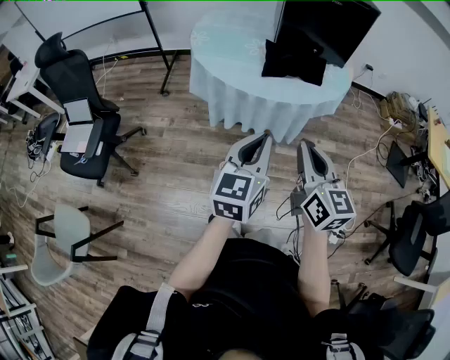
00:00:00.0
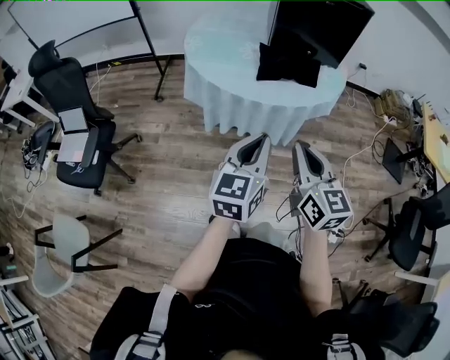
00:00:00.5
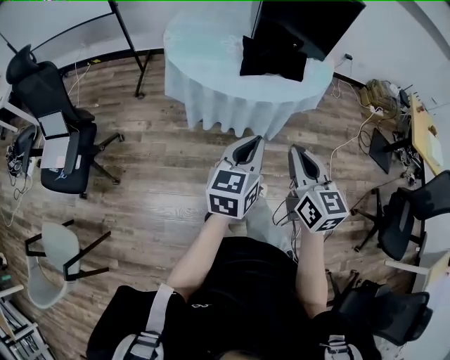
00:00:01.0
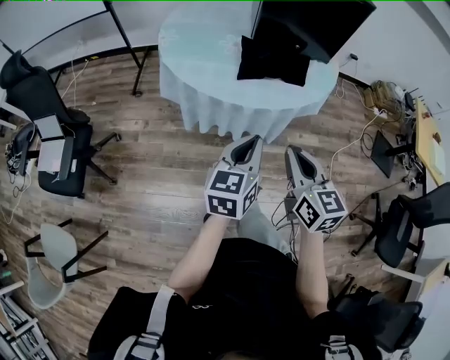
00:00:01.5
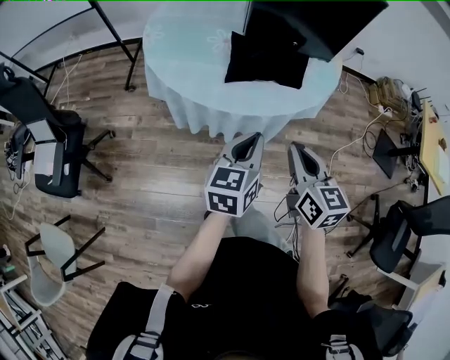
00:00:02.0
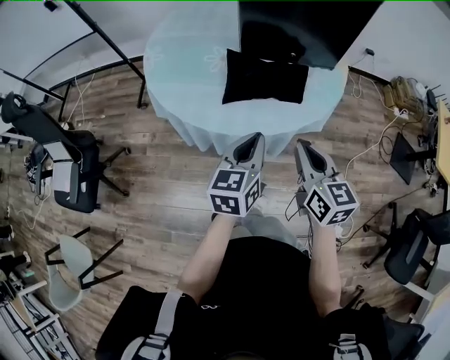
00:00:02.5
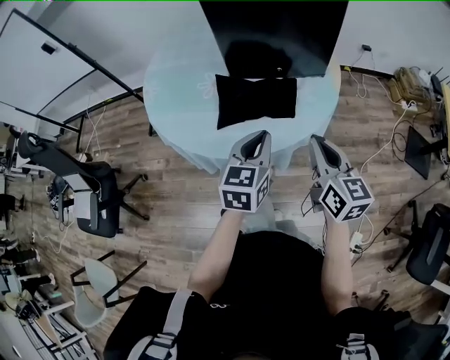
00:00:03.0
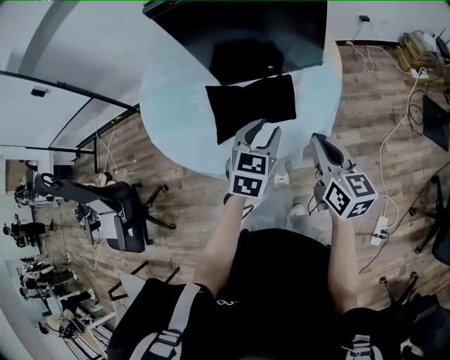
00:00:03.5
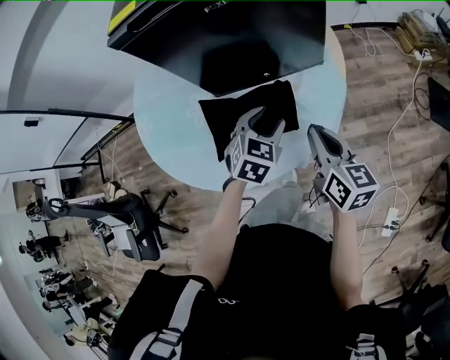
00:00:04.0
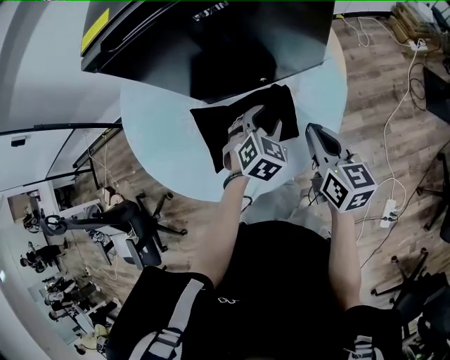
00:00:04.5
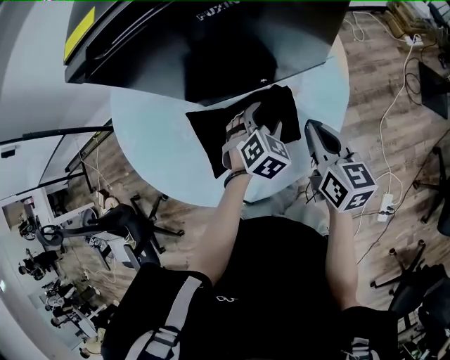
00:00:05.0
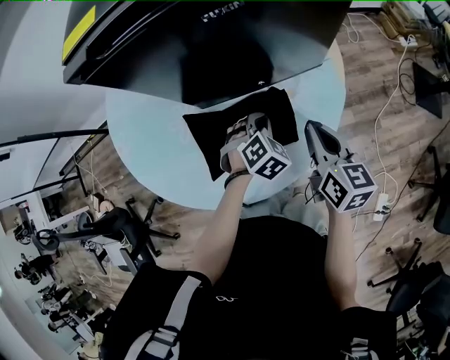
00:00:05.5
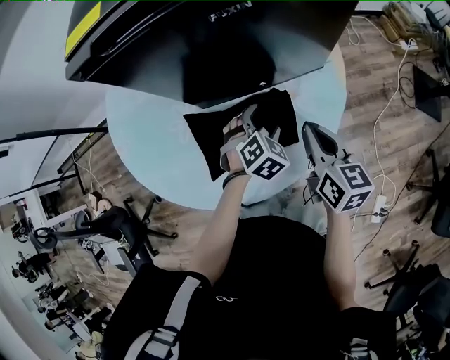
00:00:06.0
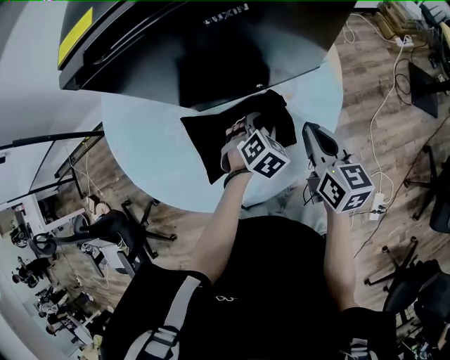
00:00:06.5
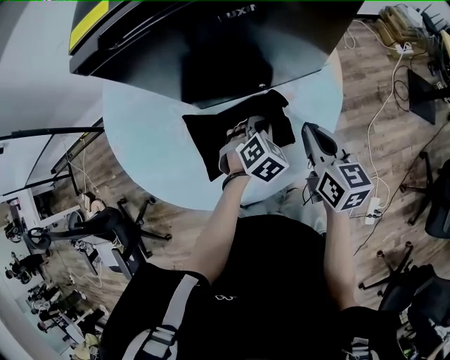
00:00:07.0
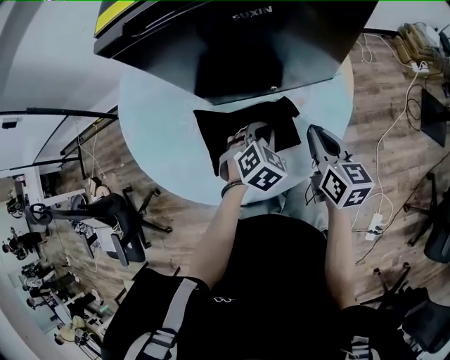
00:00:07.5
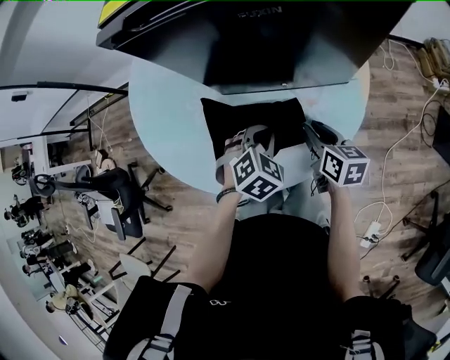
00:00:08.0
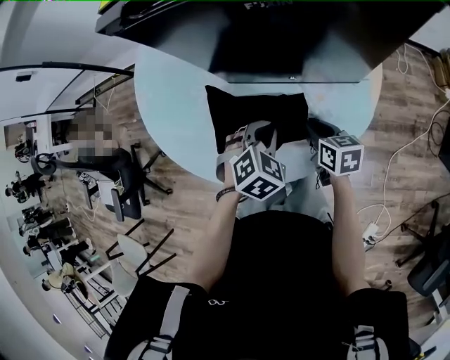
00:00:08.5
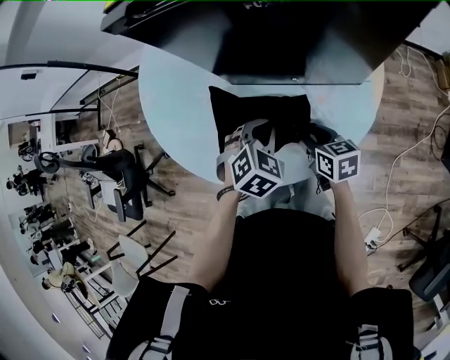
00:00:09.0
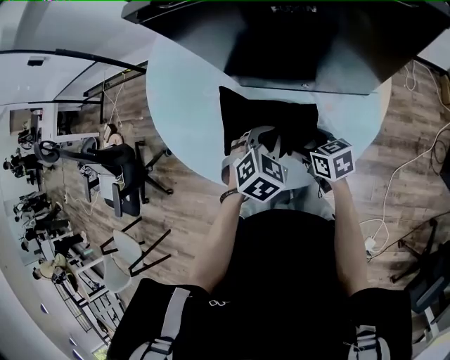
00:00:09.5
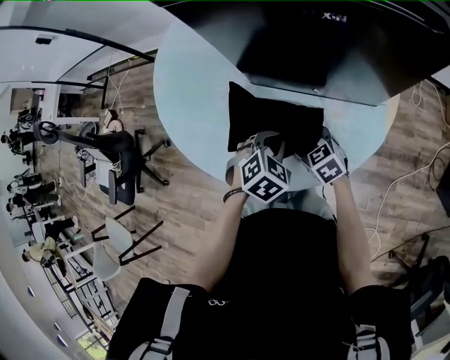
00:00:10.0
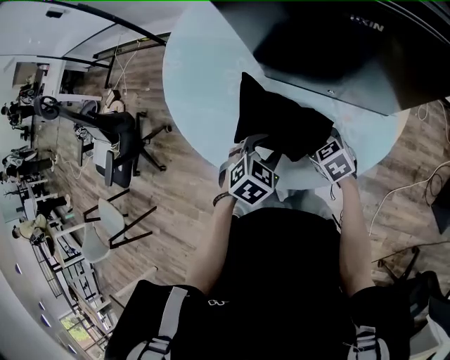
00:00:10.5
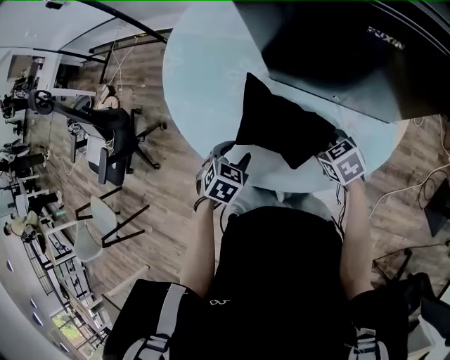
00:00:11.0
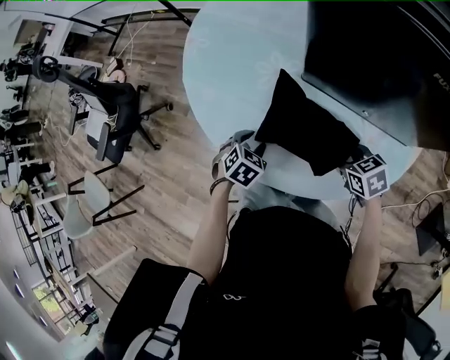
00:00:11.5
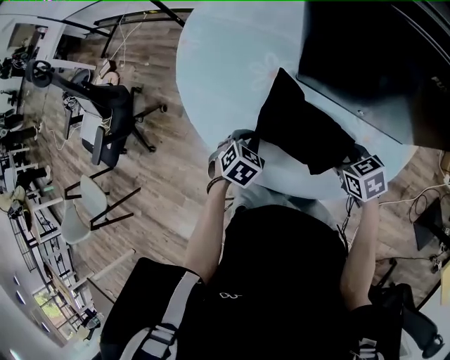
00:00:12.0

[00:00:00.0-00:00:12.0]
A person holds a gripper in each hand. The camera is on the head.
00:00:00.0 to 00:00:02.0: Both grippers travel together forward, to the right and downward, about 20 cm.
00:00:02.0 to 00:00:04.0: The left gripper travels forward by roughly 30 cm, rolls clockwise, seen from behind, by about 40 degrees, and opens up; the right gripper travels forward and to the right by approximately 30 cm, and changes its angle by approximately 20 degrees.
00:00:04.0 to 00:00:06.0: The right gripper moves forward, about 5 cm. The left gripper shifts roughly 10 cm downward and forward, rotates some 20 degrees, and closes and opens again.
00:00:06.0 to 00:00:08.0: The right gripper travels downward by about 10 cm, changes its angle by approximately 20 degrees, and opens, while the left gripper changes place by about 5 cm, and closes its fingers.
00:00:08.0 to 00:00:10.0: The right gripper travels to the left and downward by approximately 10 cm, twists about 50 degrees counterclockwise, seen from behind, and opens its fingers.
00:00:10.0 to 00:00:12.0: The left gripper moves to the left and downward, about 20 cm, swivels approximately 20 degrees, and opens, then closes again.

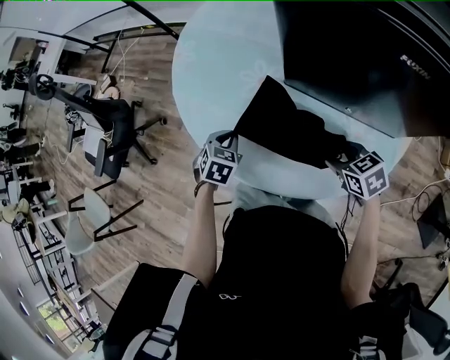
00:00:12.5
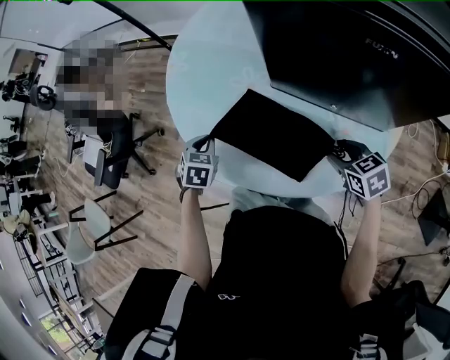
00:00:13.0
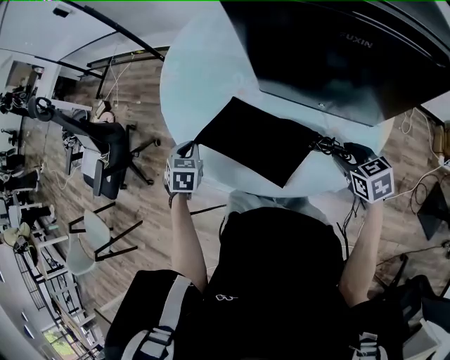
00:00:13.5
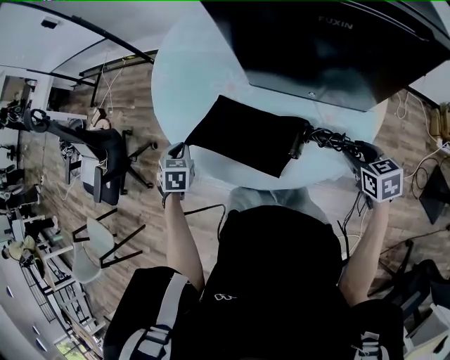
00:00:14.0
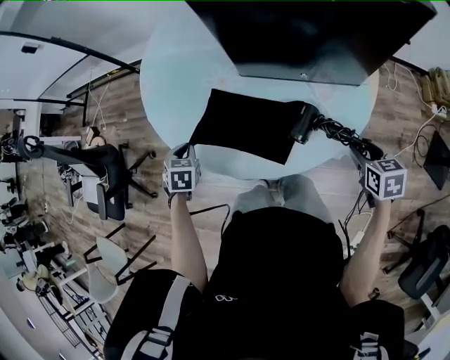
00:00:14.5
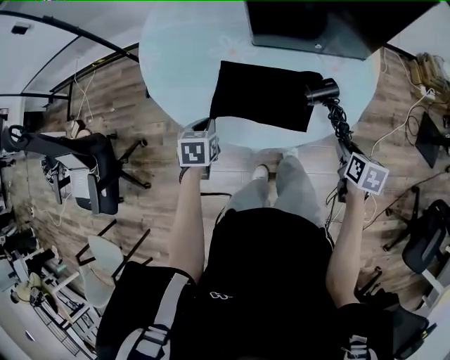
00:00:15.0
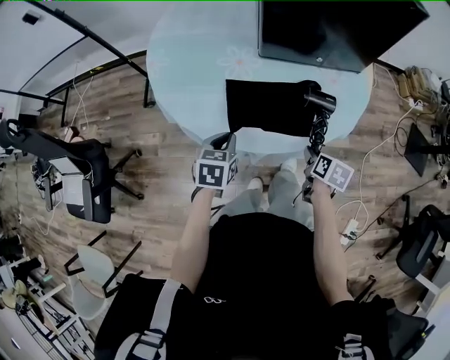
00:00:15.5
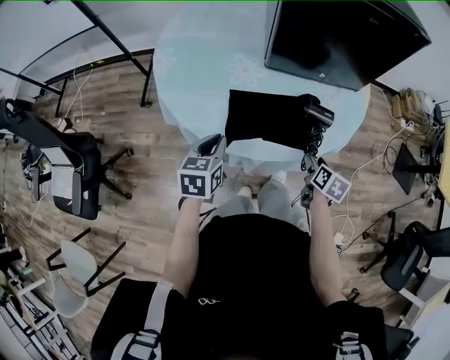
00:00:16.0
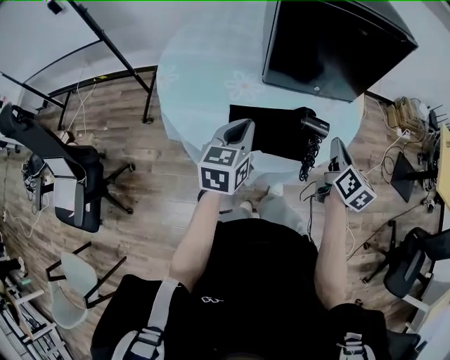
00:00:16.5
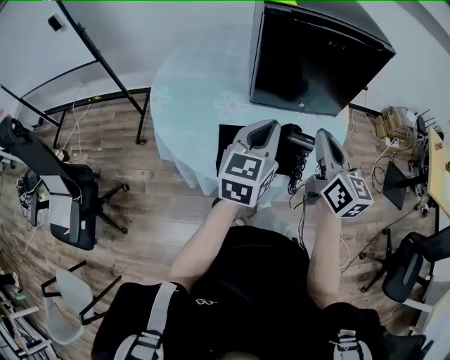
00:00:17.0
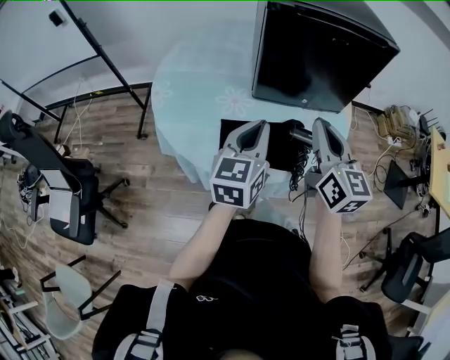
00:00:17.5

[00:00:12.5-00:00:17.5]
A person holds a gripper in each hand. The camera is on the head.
00:00:12.5 to 00:00:15.0: The left gripper shifts by about 5 cm. Meanwhile the right gripper moves roughly 20 cm, and changes its angle by roughly 70 degrees.
00:00:15.0 to 00:00:17.5: The left gripper travels upward and to the right by roughly 30 cm, and angles its fingers upward, by about 50 degrees; the right gripper is displaced upward and to the left by about 35 cm, tilts its fingers some 50 degrees upward, and closes up.

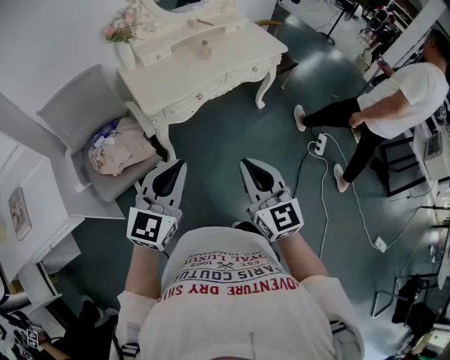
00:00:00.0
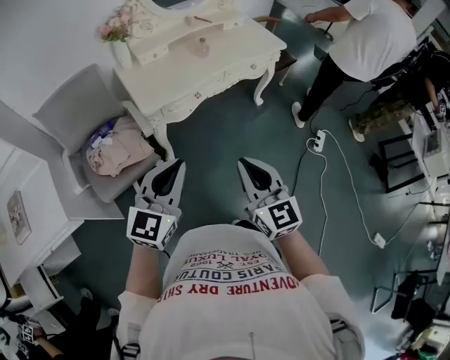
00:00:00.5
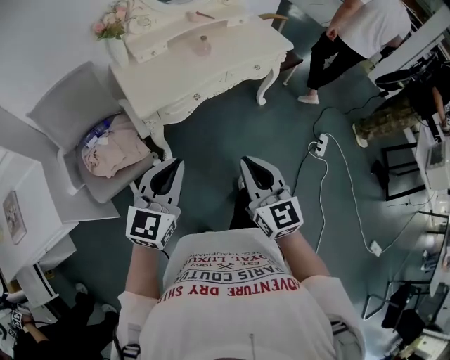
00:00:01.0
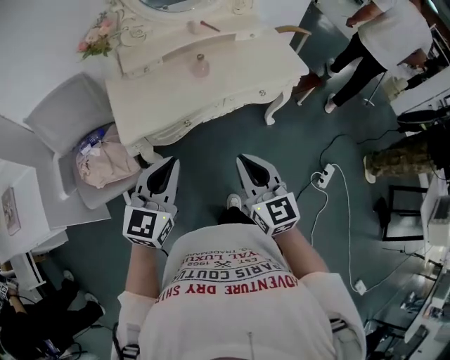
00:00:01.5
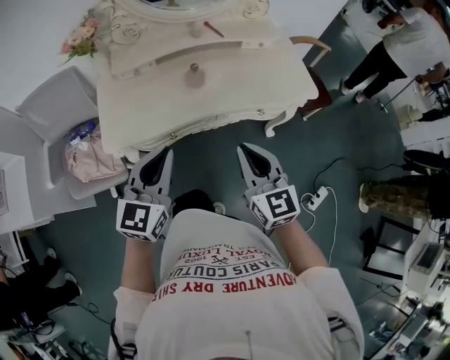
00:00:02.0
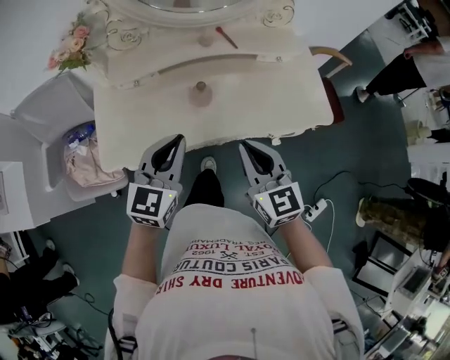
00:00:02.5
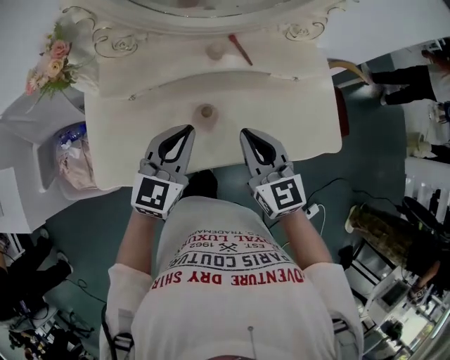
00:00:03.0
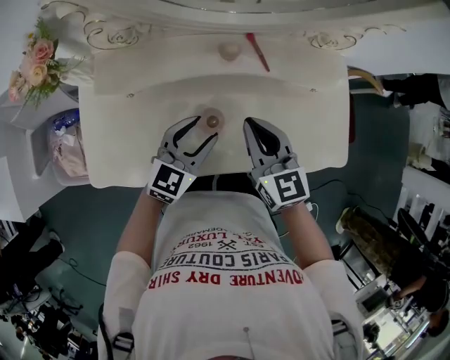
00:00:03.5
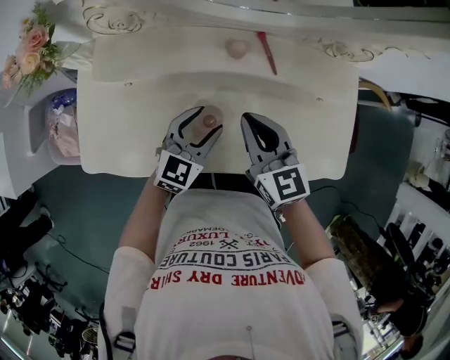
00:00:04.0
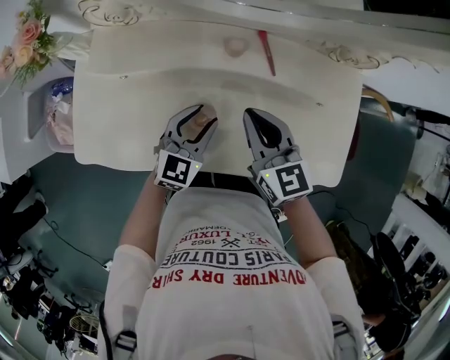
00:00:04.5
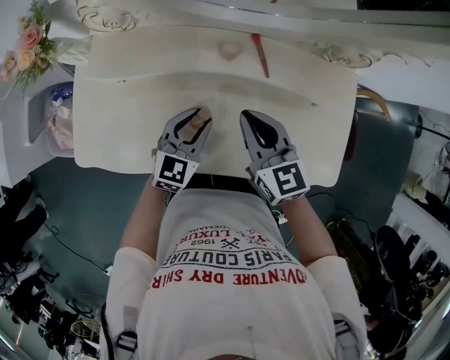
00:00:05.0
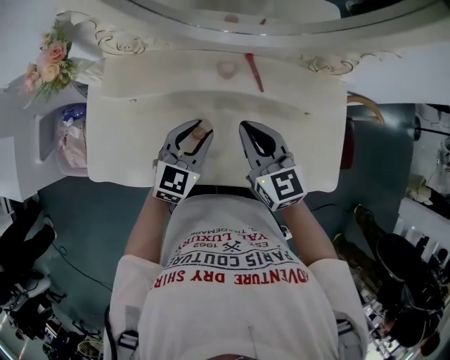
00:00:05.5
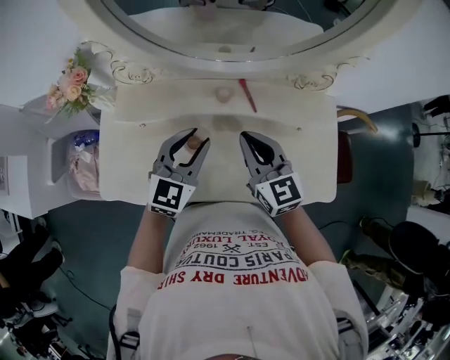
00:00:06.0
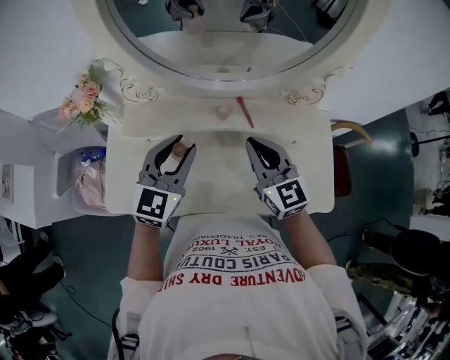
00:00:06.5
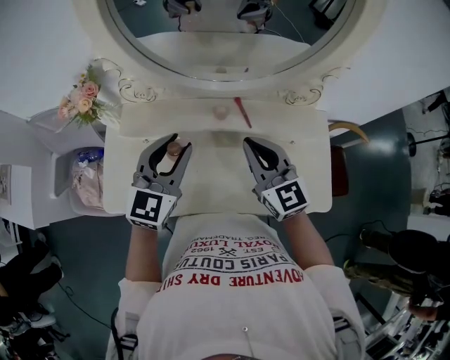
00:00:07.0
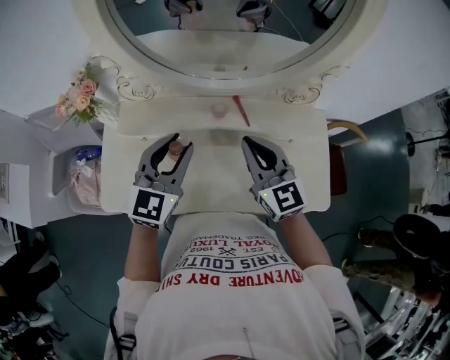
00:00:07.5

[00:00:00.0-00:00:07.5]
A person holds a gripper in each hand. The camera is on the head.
00:00:00.0 to 00:00:02.0: Both grippers are carried forward and to the right, some 50 cm. The left gripper changes its angle by roughly 30 degrees.
00:00:02.0 to 00:00:04.0: The right gripper is displaced forward by approximately 40 cm, and swivels about 20 degrees. Meanwhile the left gripper travels forward and downward by some 40 cm, and opens its fingers.
00:00:04.0 to 00:00:05.5: The left gripper closes.
00:00:05.5 to 00:00:07.5: The left gripper moves upward, roughly 15 cm. Meanwhile the right gripper shifts some 10 cm upward.

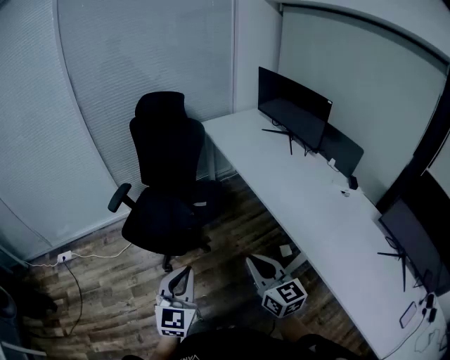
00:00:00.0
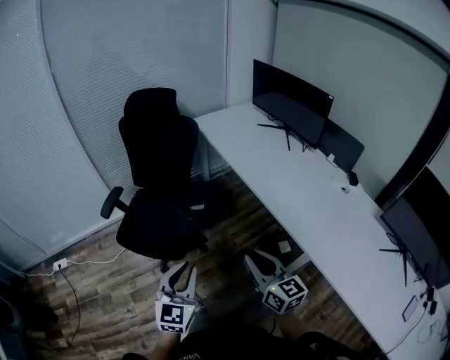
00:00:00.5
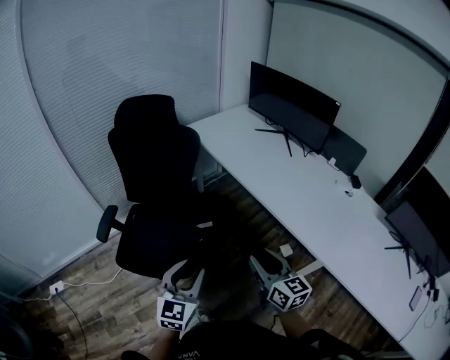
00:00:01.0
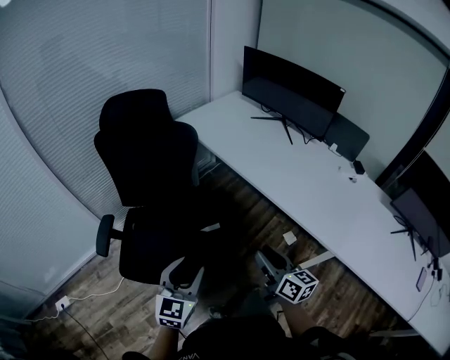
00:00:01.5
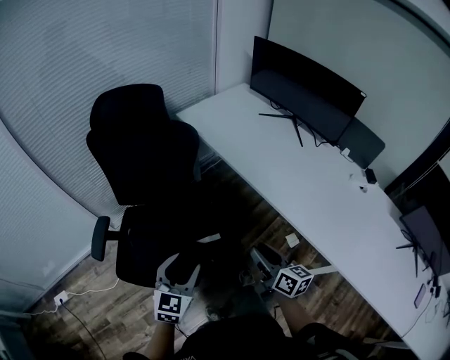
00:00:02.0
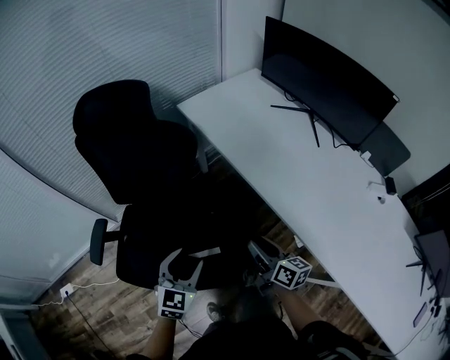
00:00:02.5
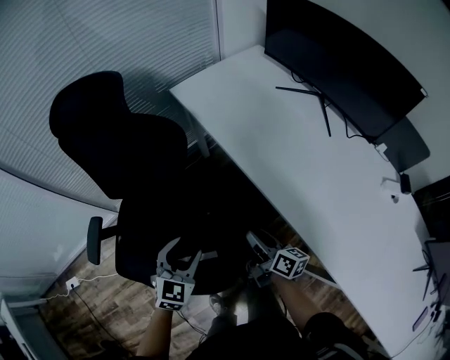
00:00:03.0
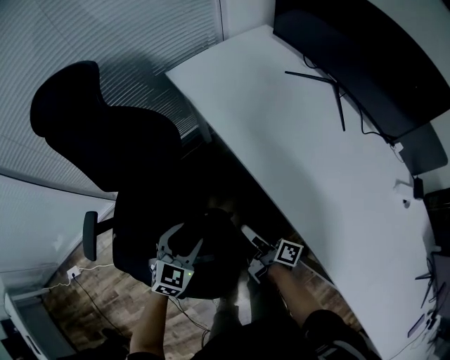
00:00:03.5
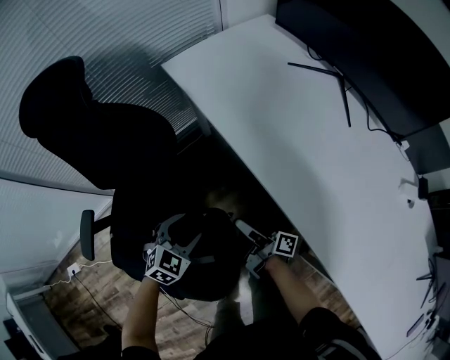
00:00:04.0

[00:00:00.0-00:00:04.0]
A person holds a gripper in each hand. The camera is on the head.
00:00:00.0 to 00:00:02.0: The grippers both shift forward by roughly 35 cm. The right gripper changes its angle by roughly 30 degrees, and opens its fingers, while the left gripper rotates about 20 degrees, and opens its fingers.
00:00:02.0 to 00:00:04.0: Both grippers move forward and downward, about 35 cm. The left gripper changes its angle by some 30 degrees; the right gripper rotates around the line of its fingers by some 50 degrees, clockwise from behind.
